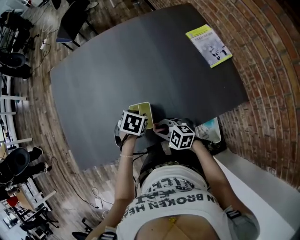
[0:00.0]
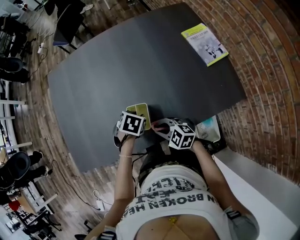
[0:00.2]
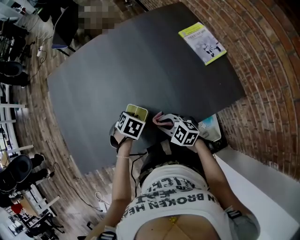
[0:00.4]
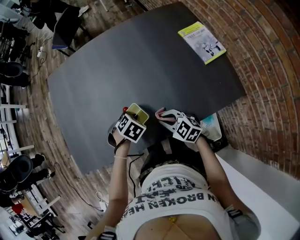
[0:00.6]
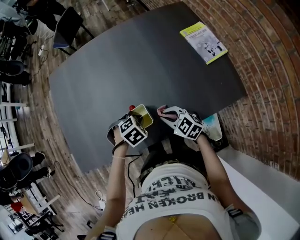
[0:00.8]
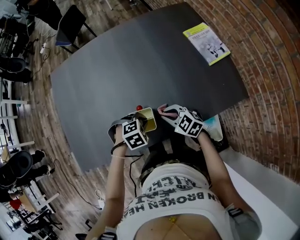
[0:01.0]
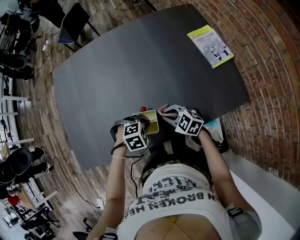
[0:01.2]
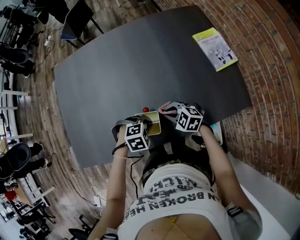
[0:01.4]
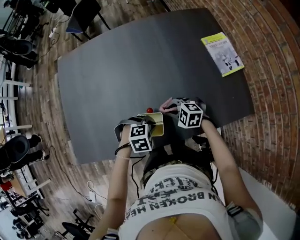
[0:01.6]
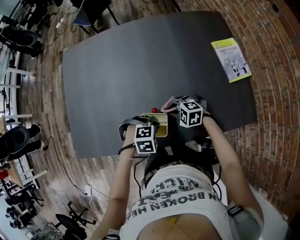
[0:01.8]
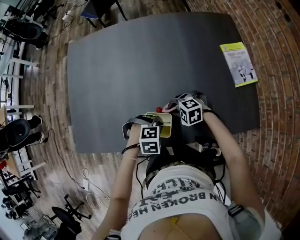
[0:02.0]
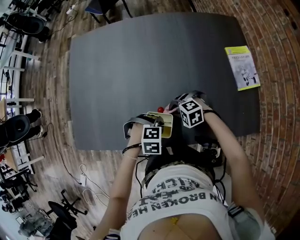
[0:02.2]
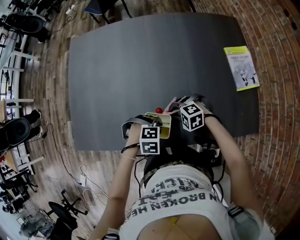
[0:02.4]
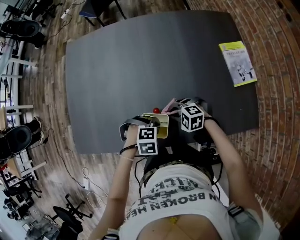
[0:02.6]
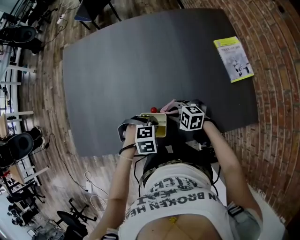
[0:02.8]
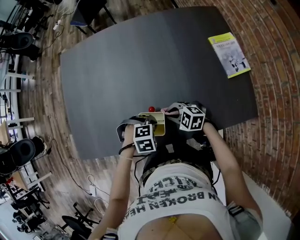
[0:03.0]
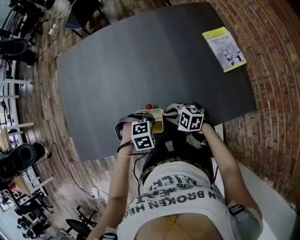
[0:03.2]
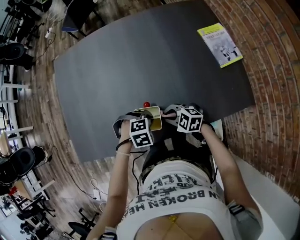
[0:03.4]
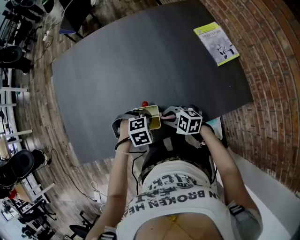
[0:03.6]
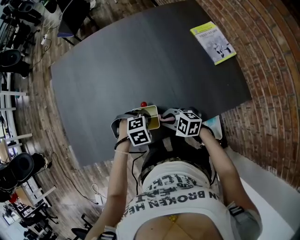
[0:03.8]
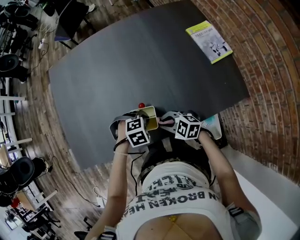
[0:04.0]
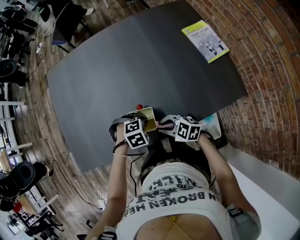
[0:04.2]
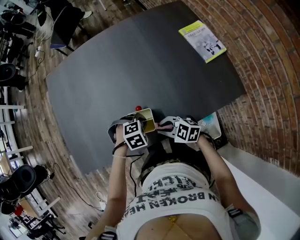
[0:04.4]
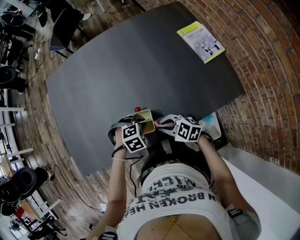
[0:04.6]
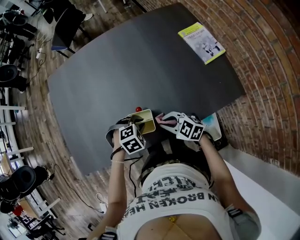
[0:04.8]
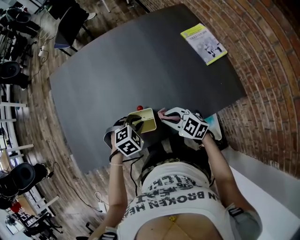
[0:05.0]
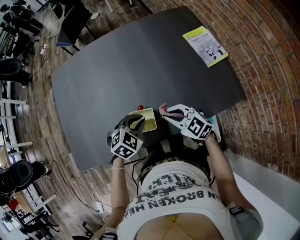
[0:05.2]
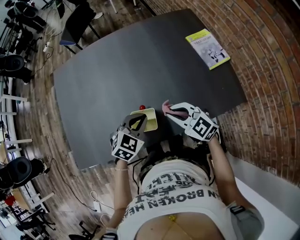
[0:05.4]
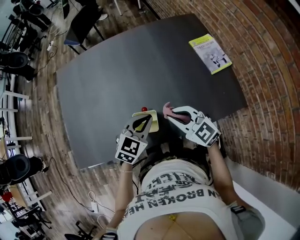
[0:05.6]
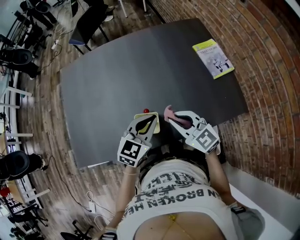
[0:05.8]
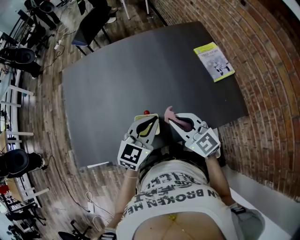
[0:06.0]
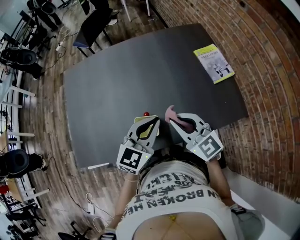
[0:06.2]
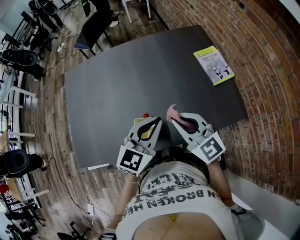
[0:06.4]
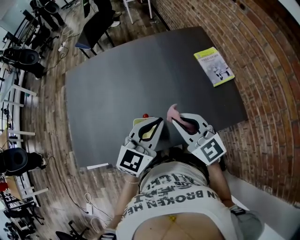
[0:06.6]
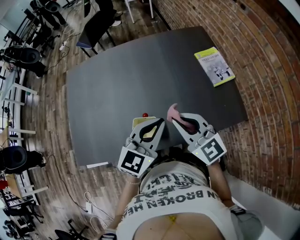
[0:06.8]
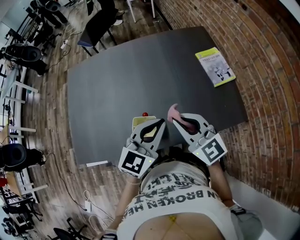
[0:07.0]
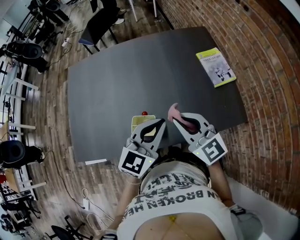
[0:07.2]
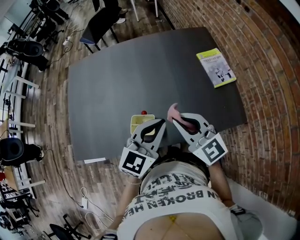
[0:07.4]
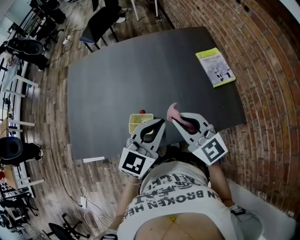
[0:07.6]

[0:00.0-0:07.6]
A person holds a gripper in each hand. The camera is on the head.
0:00.0 to 0:01.6: The right gripper ends up roughly 10 cm from where it was. Meanwhile the left gripper changes place by about 5 cm, rotates around the line of its fingers by roughly 60 degrees, clockwise from behind, and closes up.
0:03.0 to 0:04.6: The right gripper ends up some 10 cm from where it was, and turns by approximately 20 degrees.
0:04.6 to 0:06.0: The grippers both shift upward by about 20 cm. The right gripper turns by roughly 30 degrees; the left gripper points its fingers about 50 degrees further upward.
0:06.0 to 0:07.6: The left gripper heads upward and to the right, covering about 10 cm; the right gripper moves upward, roughly 5 cm.

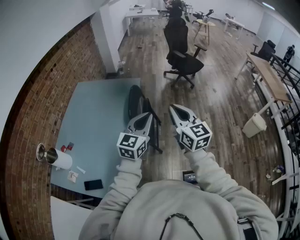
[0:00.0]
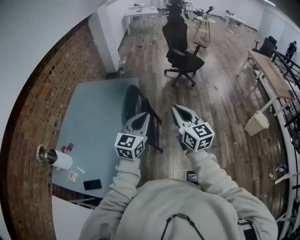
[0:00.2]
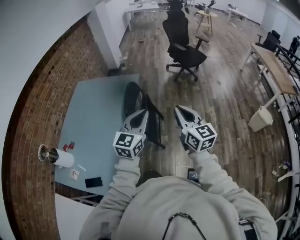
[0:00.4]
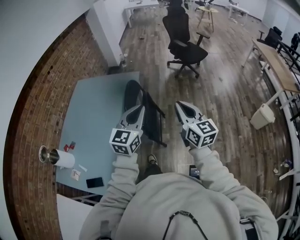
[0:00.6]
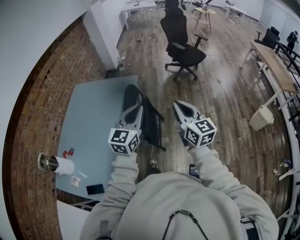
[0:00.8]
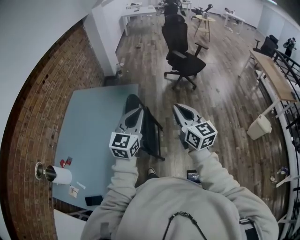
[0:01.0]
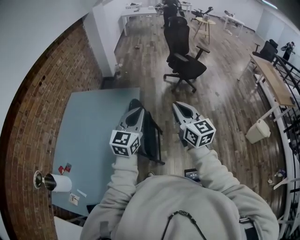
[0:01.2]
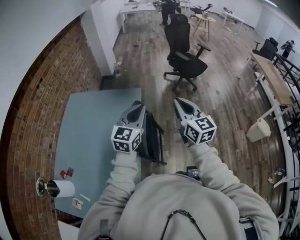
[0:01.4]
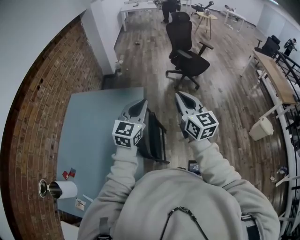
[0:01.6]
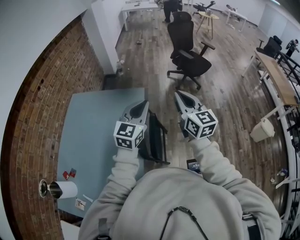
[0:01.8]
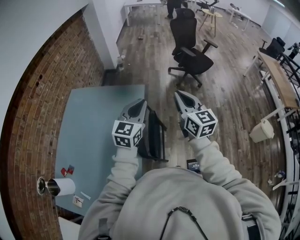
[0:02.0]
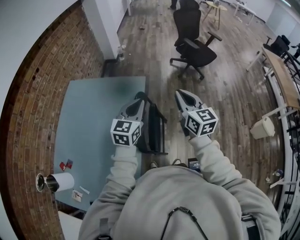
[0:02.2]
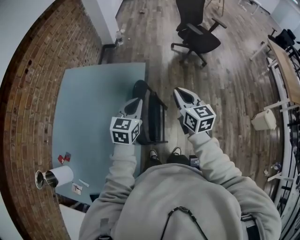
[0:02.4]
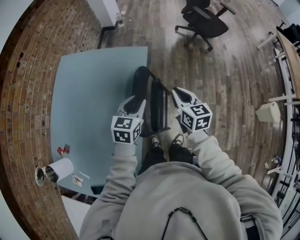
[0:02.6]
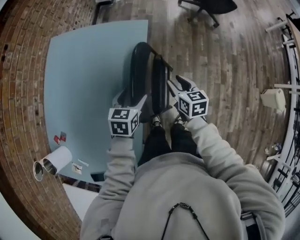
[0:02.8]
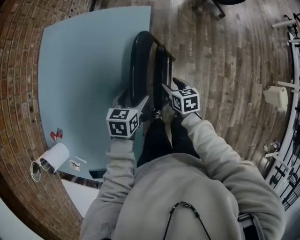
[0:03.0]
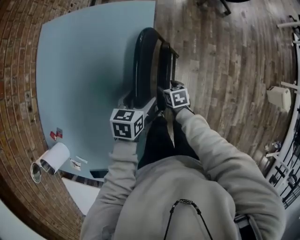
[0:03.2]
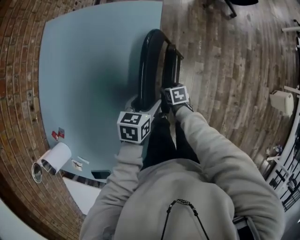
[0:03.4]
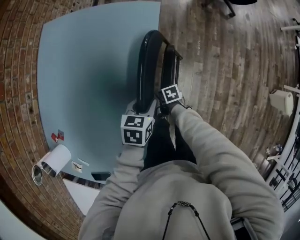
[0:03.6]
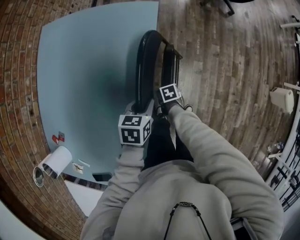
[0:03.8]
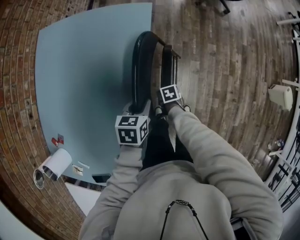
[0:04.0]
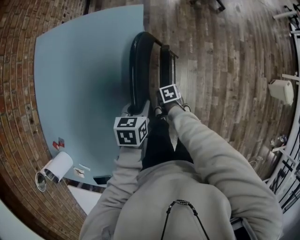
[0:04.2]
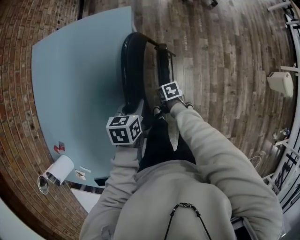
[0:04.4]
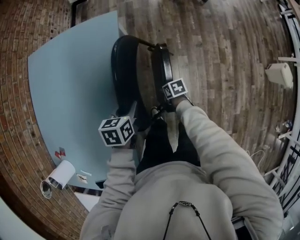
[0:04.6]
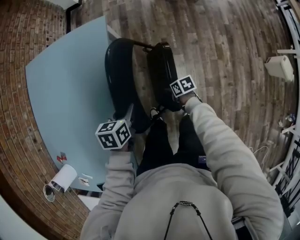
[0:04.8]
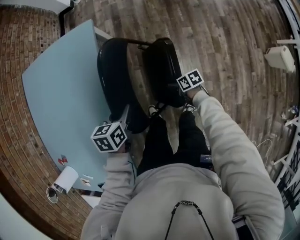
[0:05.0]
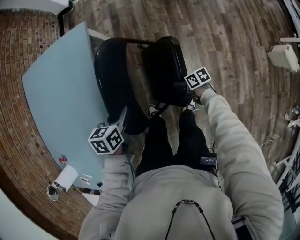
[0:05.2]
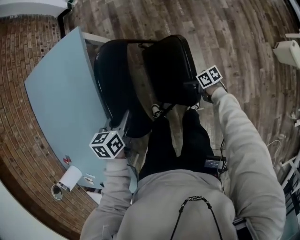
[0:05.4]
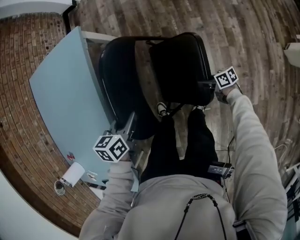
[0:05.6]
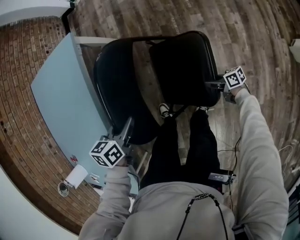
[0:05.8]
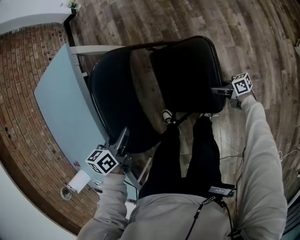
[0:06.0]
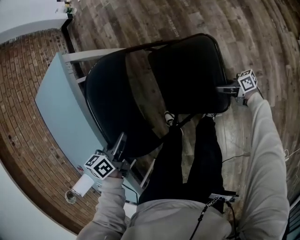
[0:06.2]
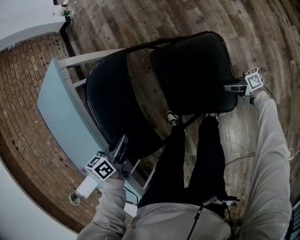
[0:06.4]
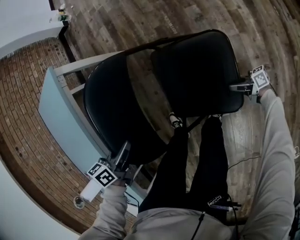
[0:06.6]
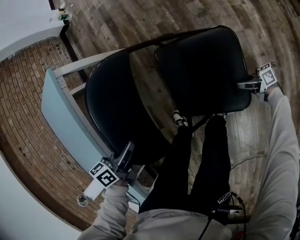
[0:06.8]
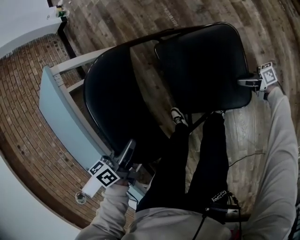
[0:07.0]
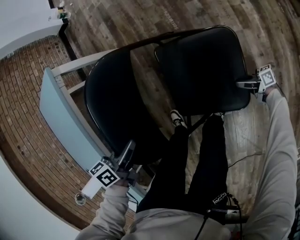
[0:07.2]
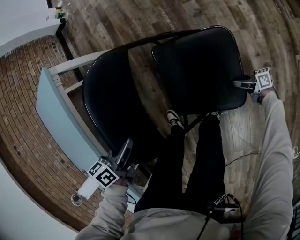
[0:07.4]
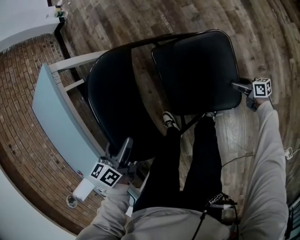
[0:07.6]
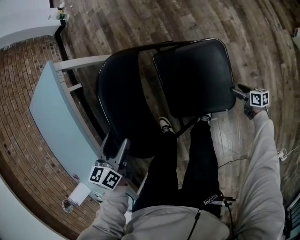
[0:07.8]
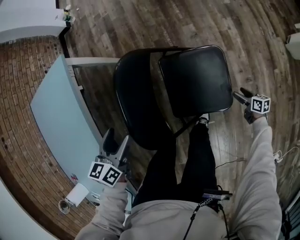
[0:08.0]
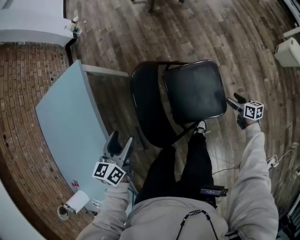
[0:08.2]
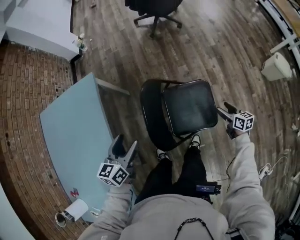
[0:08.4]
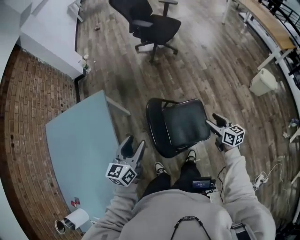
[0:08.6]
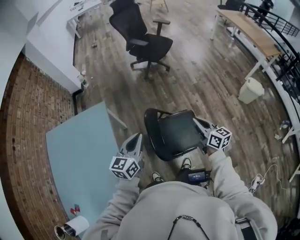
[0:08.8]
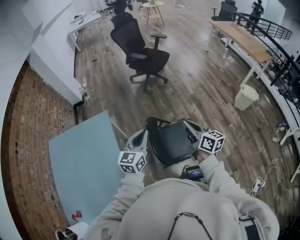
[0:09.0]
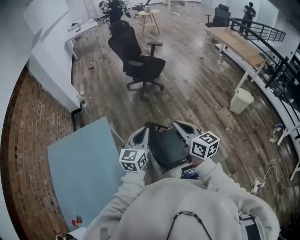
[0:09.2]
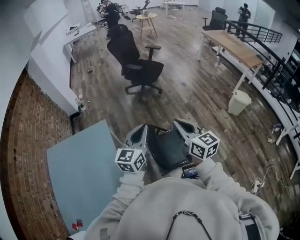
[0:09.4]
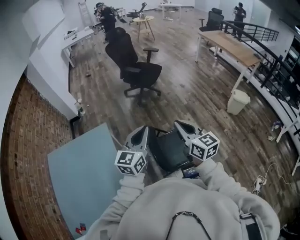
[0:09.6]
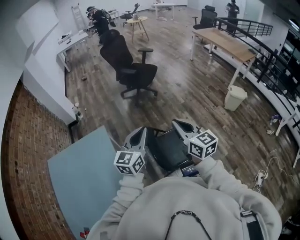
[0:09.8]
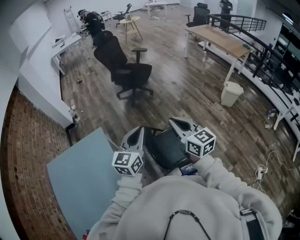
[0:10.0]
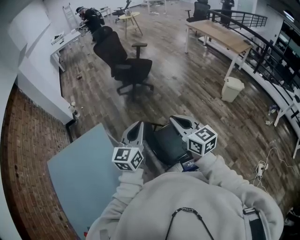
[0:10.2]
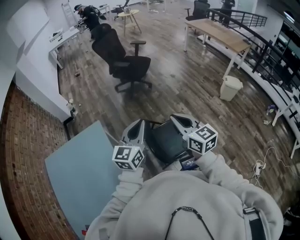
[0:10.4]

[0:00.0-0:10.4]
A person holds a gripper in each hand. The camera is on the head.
0:00.0 to 0:01.4: Both grippers move forward, about 25 cm.
0:01.4 to 0:03.0: The grippers both shift downward by approximately 40 cm. The right gripper tilts its fingers roughly 40 degrees downward, and opens up; the left gripper points its fingers approximately 40 degrees further downward, and opens its fingers.
0:03.0 to 0:04.4: The right gripper is displaced downward by about 15 cm, and changes its angle by roughly 20 degrees; the left gripper moves to the right, roughly 5 cm, and closes.
0:04.4 to 0:06.0: The left gripper heads to the right and downward, covering roughly 20 cm. The right gripper heads to the right, backward and downward, covering some 50 cm, and points its fingers roughly 50 degrees further upward.
0:06.0 to 0:07.4: The right gripper travels downward by about 15 cm, and opens its fingers. The left gripper is displaced downward by approximately 10 cm.
0:07.4 to 0:09.0: The right gripper travels upward by roughly 80 cm, swivels about 70 degrees, and closes its fingers; the left gripper is displaced upward by some 50 cm, points its fingers some 40 degrees further upward, and opens, then closes again.
0:09.0 to 0:10.4: The right gripper shifts roughly 10 cm upward and to the left, and changes its angle by some 30 degrees. Meanwhile the left gripper is displaced upward by some 10 cm.

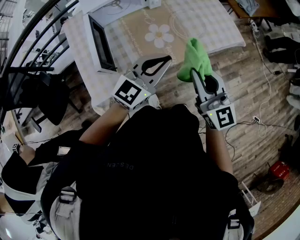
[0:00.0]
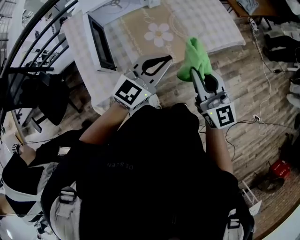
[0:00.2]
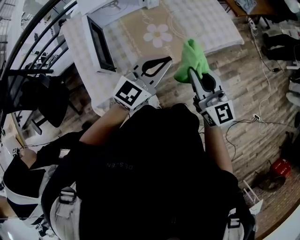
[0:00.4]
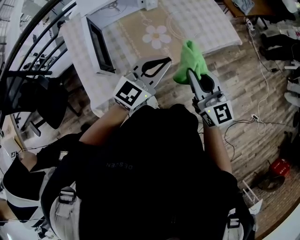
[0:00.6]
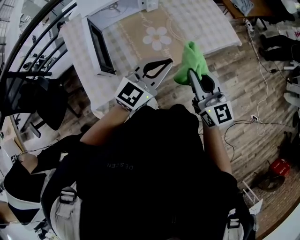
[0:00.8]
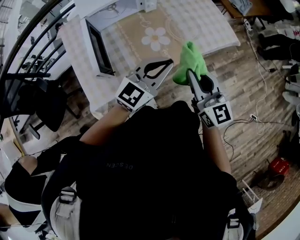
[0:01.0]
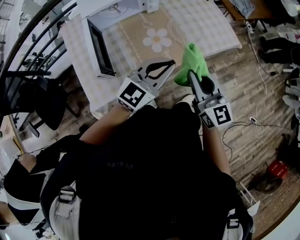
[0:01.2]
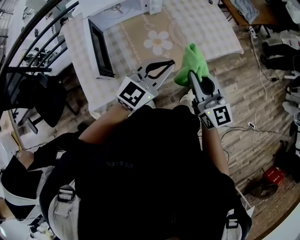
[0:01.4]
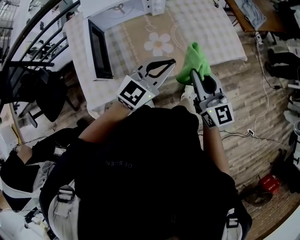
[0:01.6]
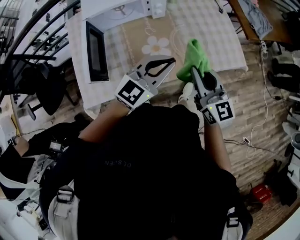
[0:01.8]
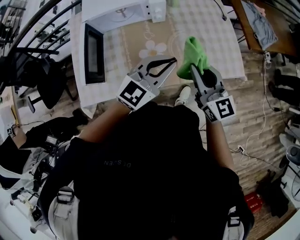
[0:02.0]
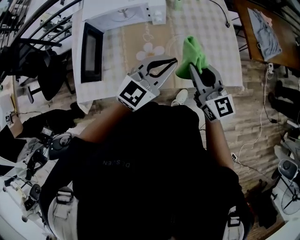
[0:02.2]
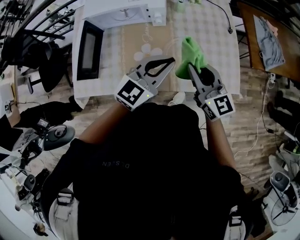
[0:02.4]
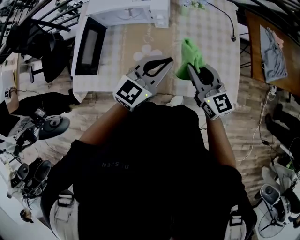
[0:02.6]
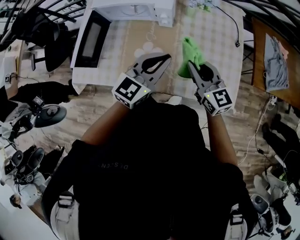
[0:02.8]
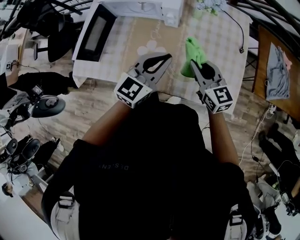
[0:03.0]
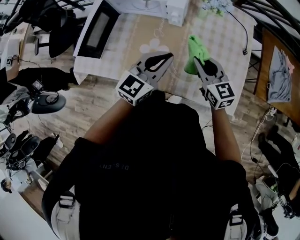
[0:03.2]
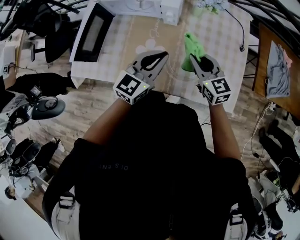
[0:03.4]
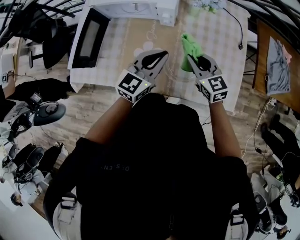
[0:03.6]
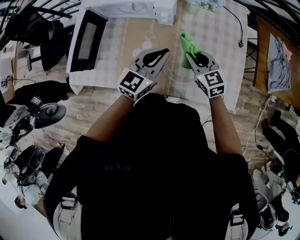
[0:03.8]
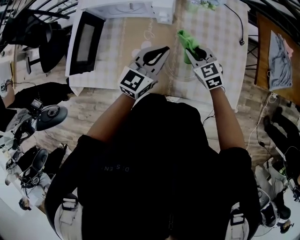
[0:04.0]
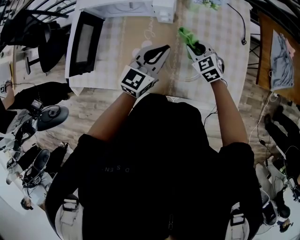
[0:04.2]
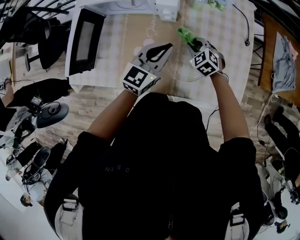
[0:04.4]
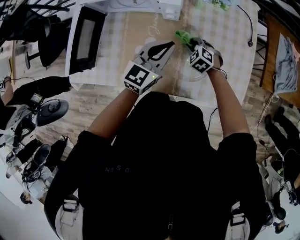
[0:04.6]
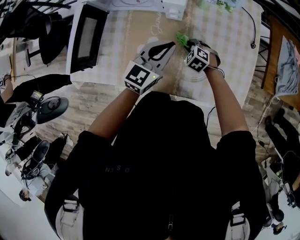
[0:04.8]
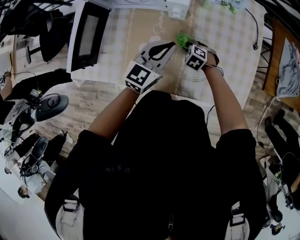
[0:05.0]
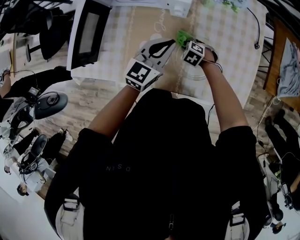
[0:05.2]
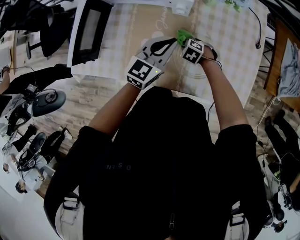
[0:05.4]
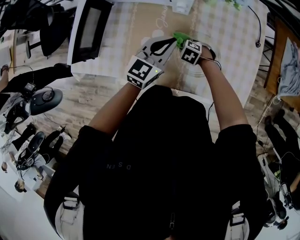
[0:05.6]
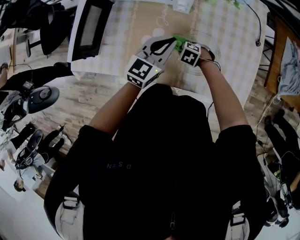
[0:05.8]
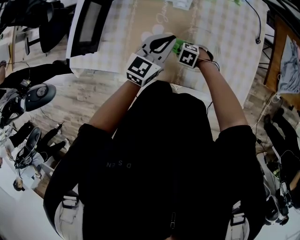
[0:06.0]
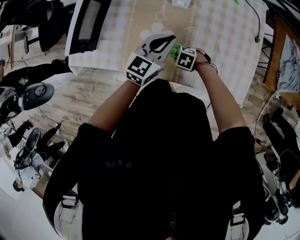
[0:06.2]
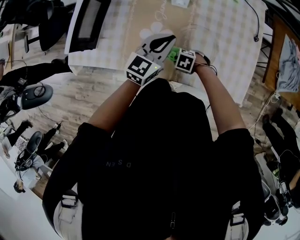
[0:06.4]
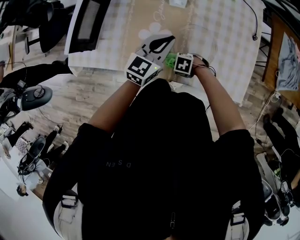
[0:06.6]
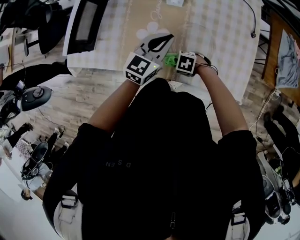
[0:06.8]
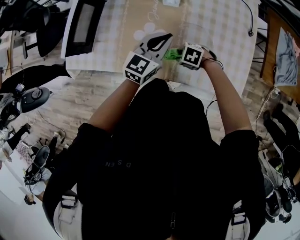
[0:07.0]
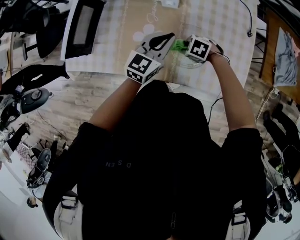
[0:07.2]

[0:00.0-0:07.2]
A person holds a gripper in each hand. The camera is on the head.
0:00.0 to 0:01.4: The right gripper shifts by approximately 5 cm.
0:01.4 to 0:02.8: The right gripper ends up approximately 30 cm from where it was, and turns by some 40 degrees, while the left gripper moves about 25 cm, and turns by about 40 degrees.
0:02.8 to 0:04.4: The left gripper heads downward and forward, covering about 15 cm. Meanwhile the right gripper moves downward and forward, approximately 25 cm, and tilts its fingers approximately 40 degrees downward.
0:04.4 to 0:05.8: The right gripper shifts by some 15 cm, and swivels about 30 degrees.
